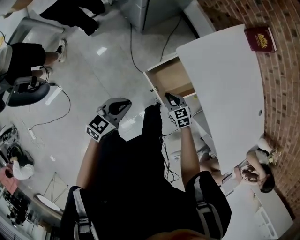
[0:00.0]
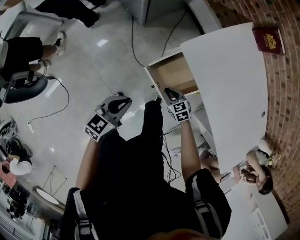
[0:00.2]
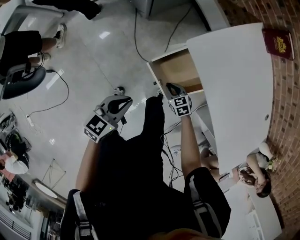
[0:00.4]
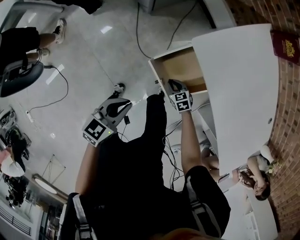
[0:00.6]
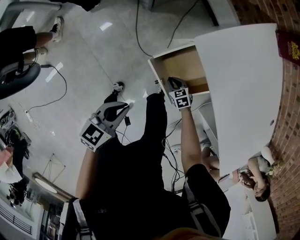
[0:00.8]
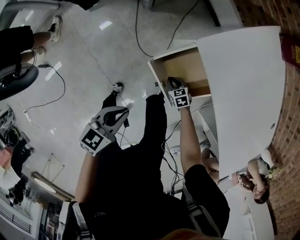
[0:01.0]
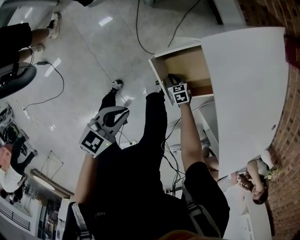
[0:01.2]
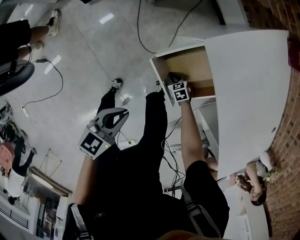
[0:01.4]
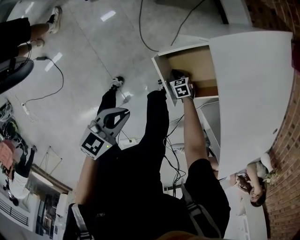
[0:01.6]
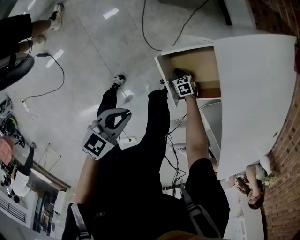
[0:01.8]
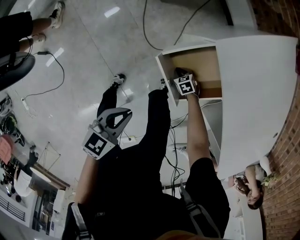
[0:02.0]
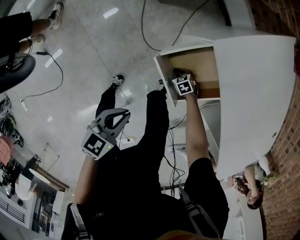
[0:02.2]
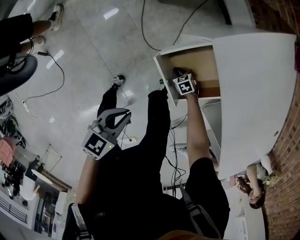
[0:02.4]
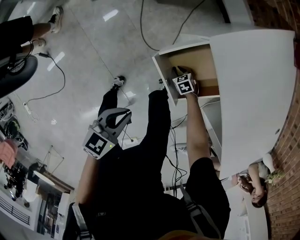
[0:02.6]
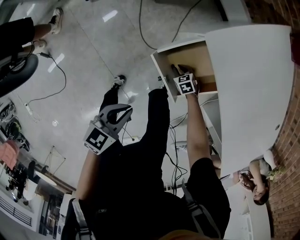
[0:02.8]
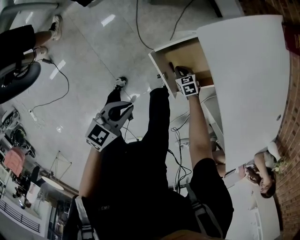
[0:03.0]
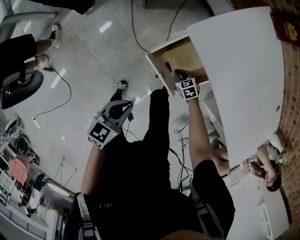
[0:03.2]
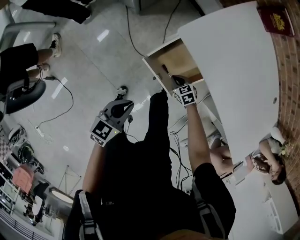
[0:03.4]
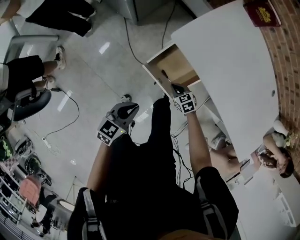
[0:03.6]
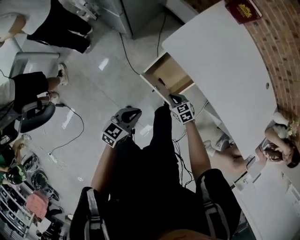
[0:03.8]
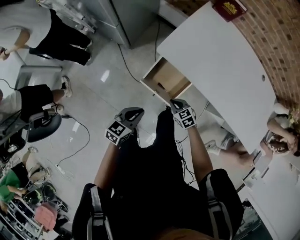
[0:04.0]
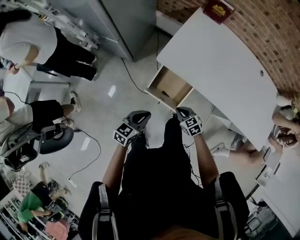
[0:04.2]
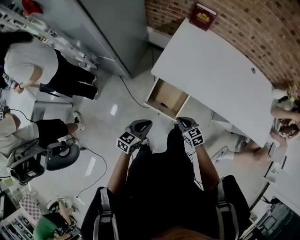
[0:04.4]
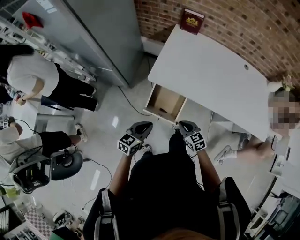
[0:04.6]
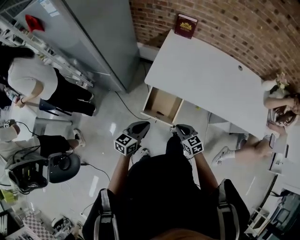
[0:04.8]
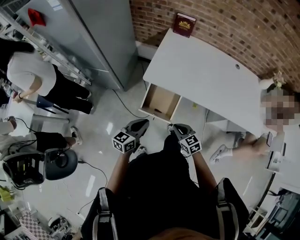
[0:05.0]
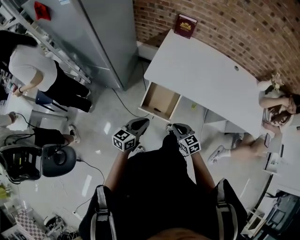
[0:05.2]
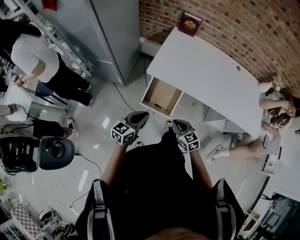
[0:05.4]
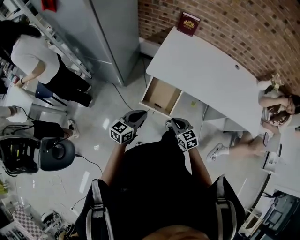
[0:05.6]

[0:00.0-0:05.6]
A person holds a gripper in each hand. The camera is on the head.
0:00.0 to 0:01.4: The right gripper moves downward, roughly 25 cm; the left gripper shifts approximately 10 cm downward.
0:01.4 to 0:02.8: The grippers stay close to where they were, moving slightly.
0:02.8 to 0:04.2: The left gripper goes roughly 10 cm upward, and changes its angle by some 20 degrees; the right gripper is displaced upward by approximately 30 cm, and changes its angle by roughly 30 degrees.
0:04.2 to 0:05.6: The left gripper goes about 10 cm upward. Meanwhile the right gripper moves upward and backward, approximately 15 cm, and swivels approximately 20 degrees.

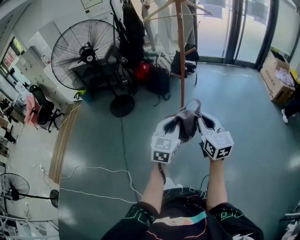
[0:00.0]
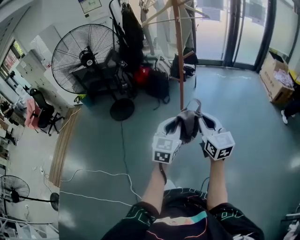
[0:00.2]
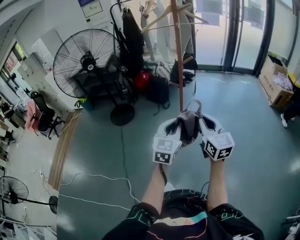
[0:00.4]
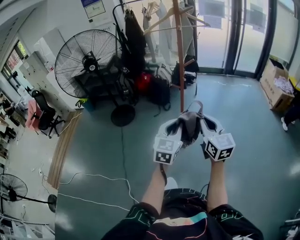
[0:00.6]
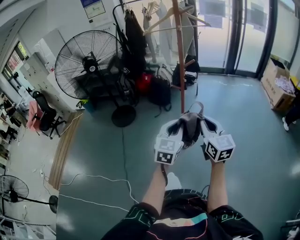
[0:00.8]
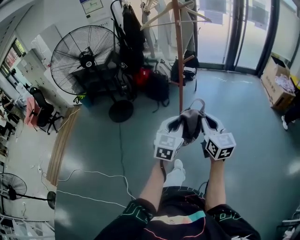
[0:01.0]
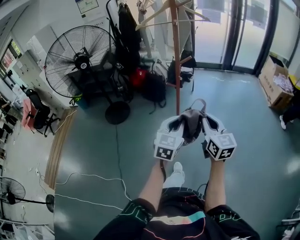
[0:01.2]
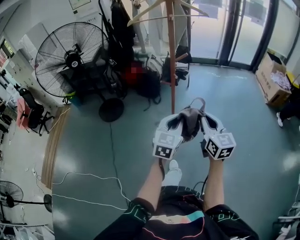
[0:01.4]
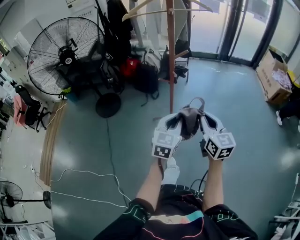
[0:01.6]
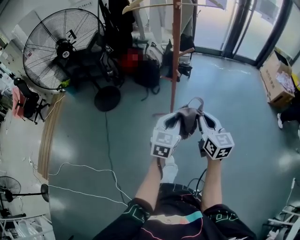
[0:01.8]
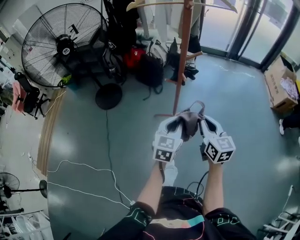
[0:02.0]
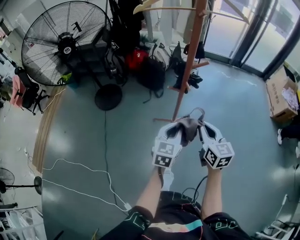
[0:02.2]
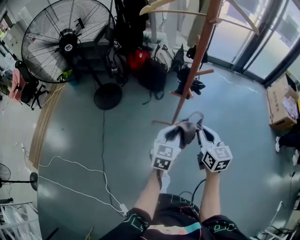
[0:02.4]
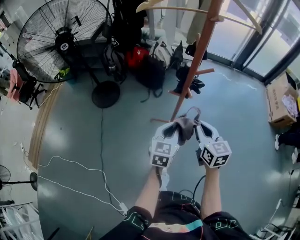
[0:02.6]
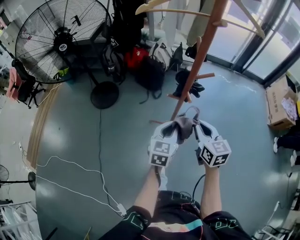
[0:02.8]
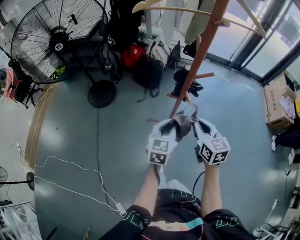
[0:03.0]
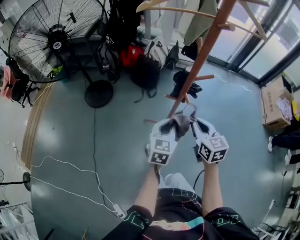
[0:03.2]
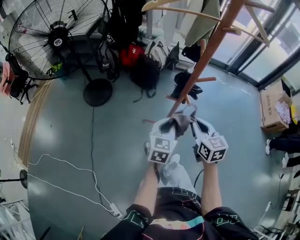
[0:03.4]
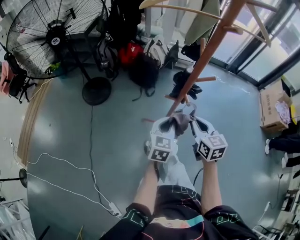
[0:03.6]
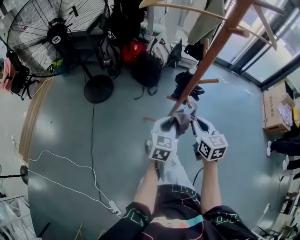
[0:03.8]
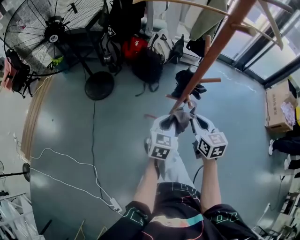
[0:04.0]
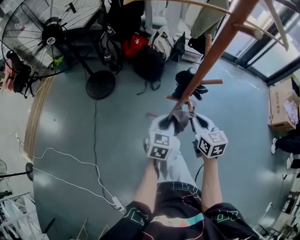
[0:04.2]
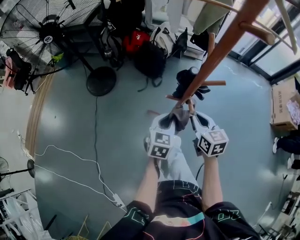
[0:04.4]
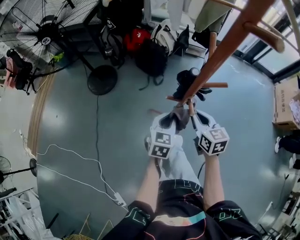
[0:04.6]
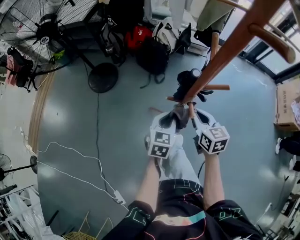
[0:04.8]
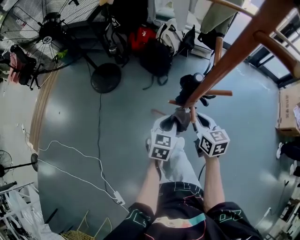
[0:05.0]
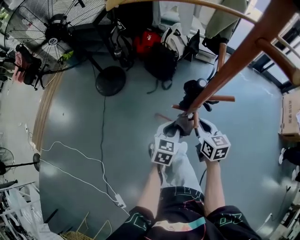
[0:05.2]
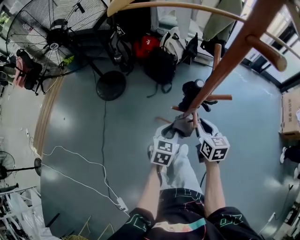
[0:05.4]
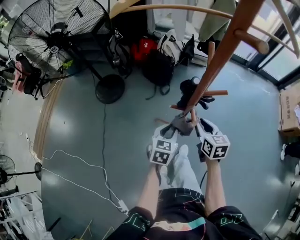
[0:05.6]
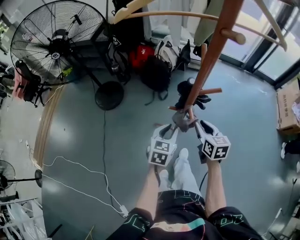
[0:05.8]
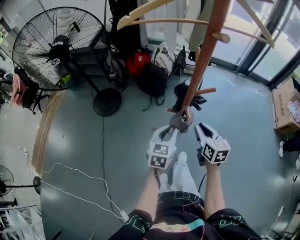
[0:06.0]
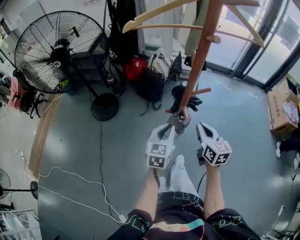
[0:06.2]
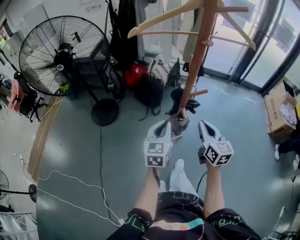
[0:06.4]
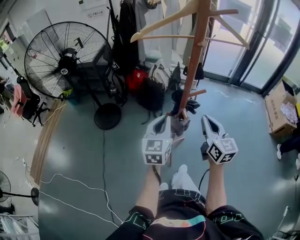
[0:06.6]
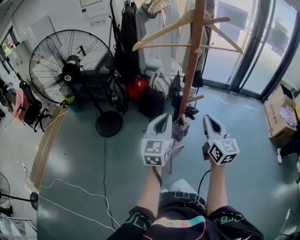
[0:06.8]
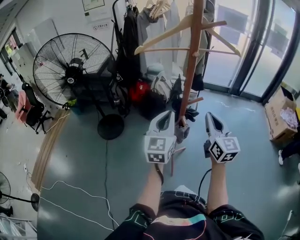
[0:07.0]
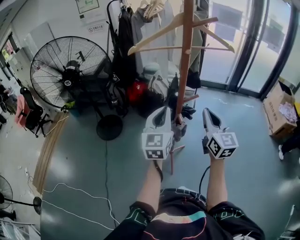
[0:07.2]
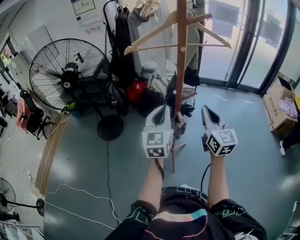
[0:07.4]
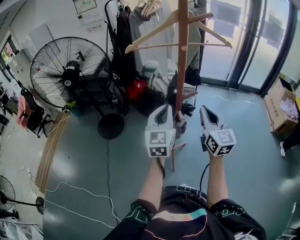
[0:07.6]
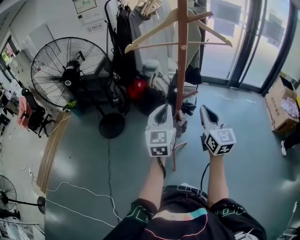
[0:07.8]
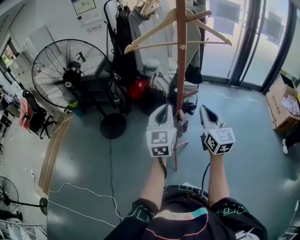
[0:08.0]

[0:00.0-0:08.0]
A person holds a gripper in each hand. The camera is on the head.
0:00.0 to 0:01.6: The grippers both shift forward and to the right by some 15 cm.
0:01.6 to 0:03.2: Both grippers move forward and downward, roughly 20 cm.
0:03.2 to 0:04.8: The grippers both shift forward and downward by approximately 10 cm.
0:04.8 to 0:06.4: The left gripper travels upward by approximately 10 cm; the right gripper heads upward and backward, covering approximately 15 cm, changes its angle by roughly 20 degrees, and opens and closes again.
0:06.4 to 0:08.0: The grippers both shift upward by about 10 cm.

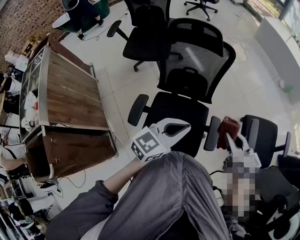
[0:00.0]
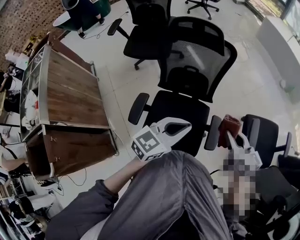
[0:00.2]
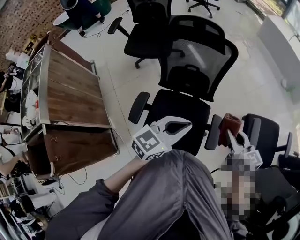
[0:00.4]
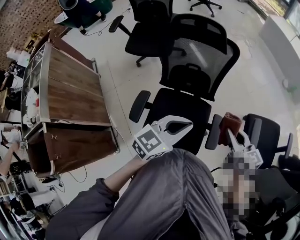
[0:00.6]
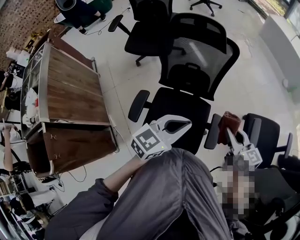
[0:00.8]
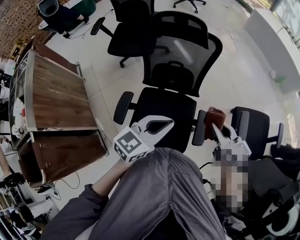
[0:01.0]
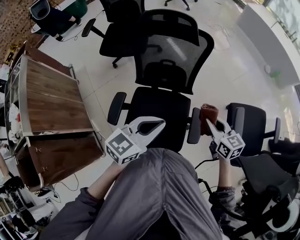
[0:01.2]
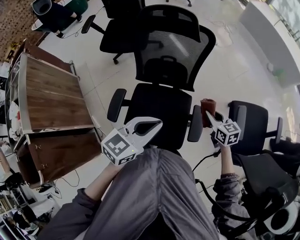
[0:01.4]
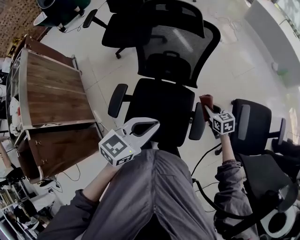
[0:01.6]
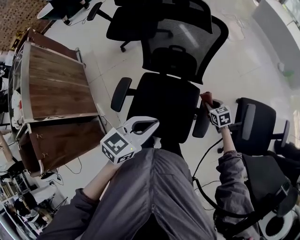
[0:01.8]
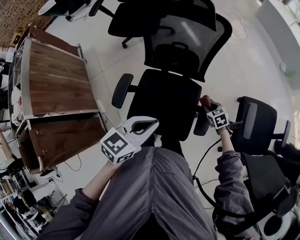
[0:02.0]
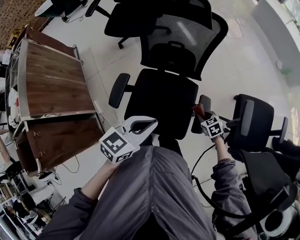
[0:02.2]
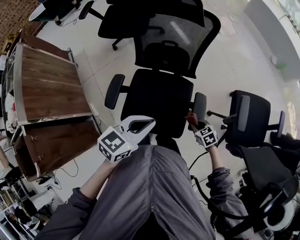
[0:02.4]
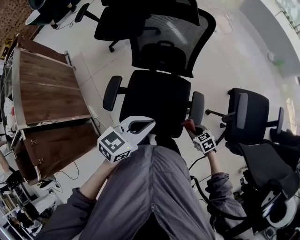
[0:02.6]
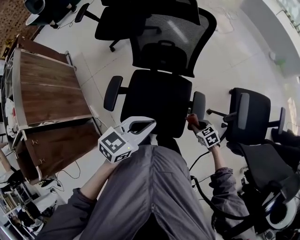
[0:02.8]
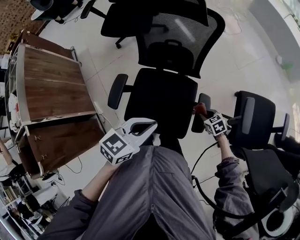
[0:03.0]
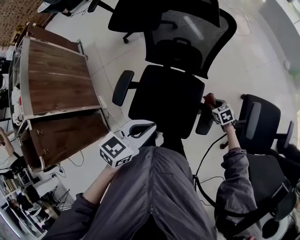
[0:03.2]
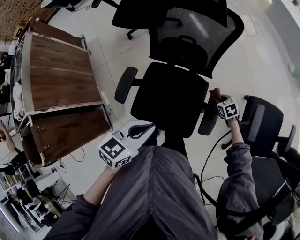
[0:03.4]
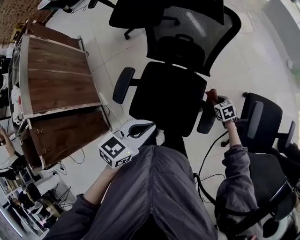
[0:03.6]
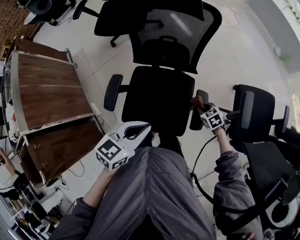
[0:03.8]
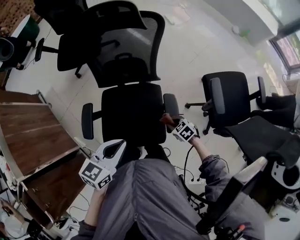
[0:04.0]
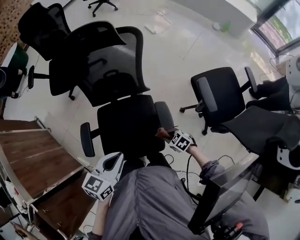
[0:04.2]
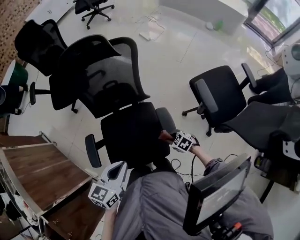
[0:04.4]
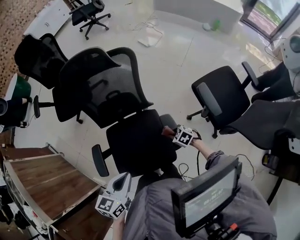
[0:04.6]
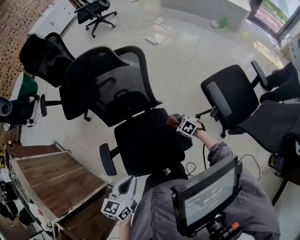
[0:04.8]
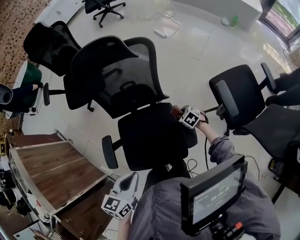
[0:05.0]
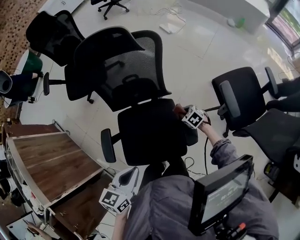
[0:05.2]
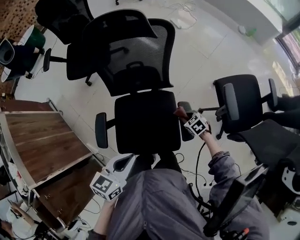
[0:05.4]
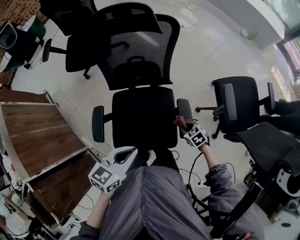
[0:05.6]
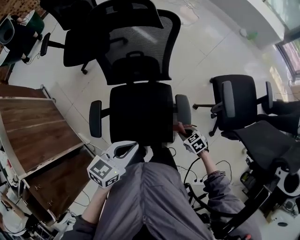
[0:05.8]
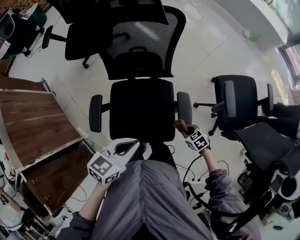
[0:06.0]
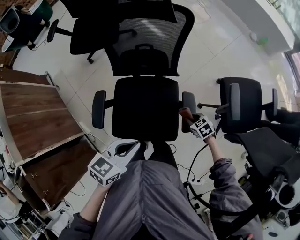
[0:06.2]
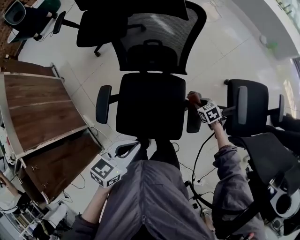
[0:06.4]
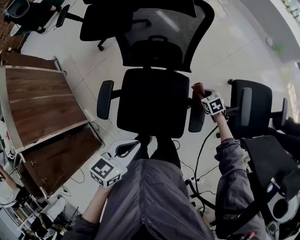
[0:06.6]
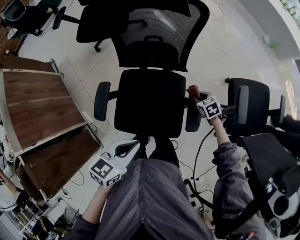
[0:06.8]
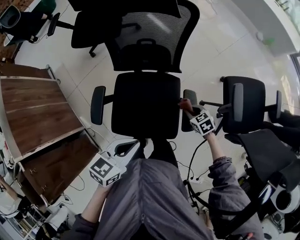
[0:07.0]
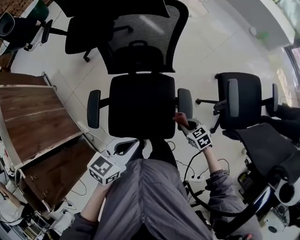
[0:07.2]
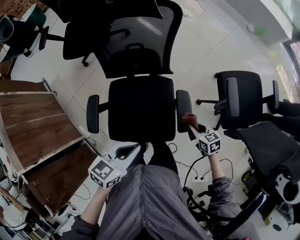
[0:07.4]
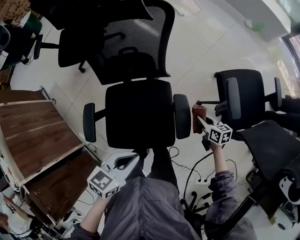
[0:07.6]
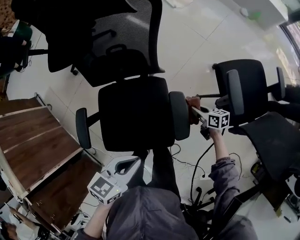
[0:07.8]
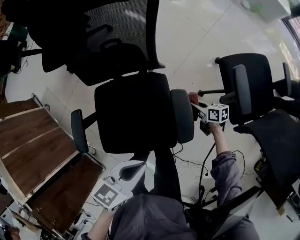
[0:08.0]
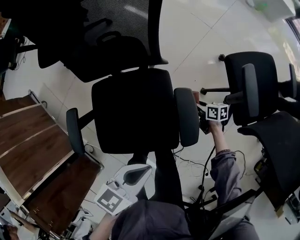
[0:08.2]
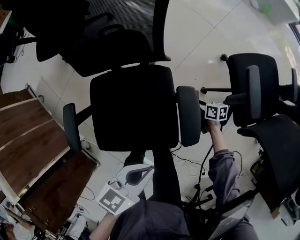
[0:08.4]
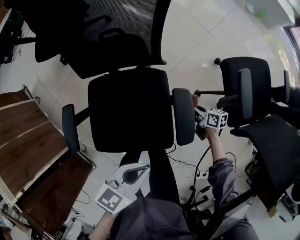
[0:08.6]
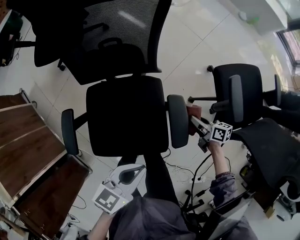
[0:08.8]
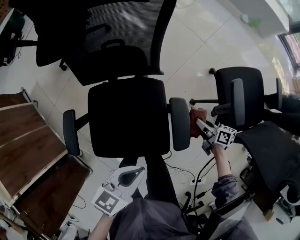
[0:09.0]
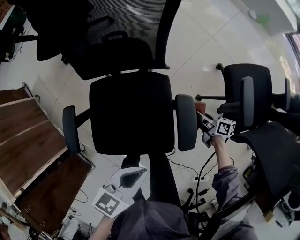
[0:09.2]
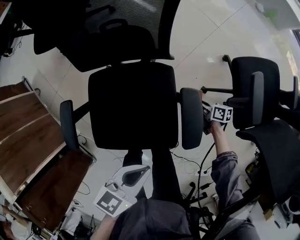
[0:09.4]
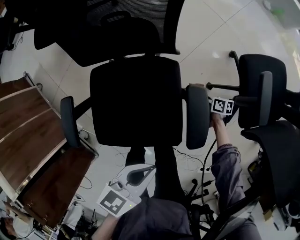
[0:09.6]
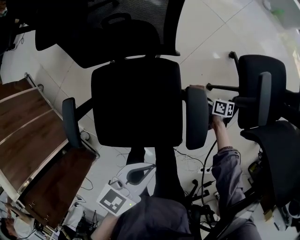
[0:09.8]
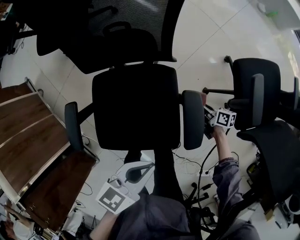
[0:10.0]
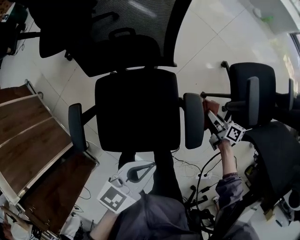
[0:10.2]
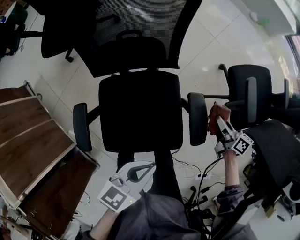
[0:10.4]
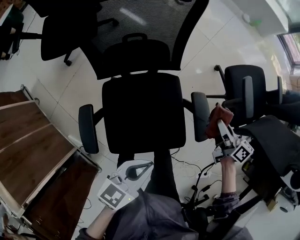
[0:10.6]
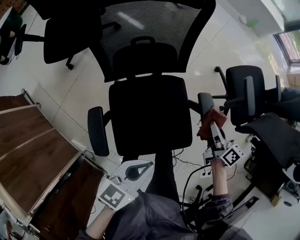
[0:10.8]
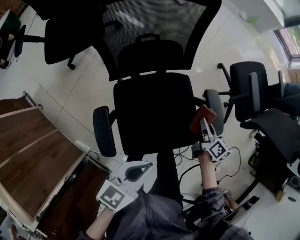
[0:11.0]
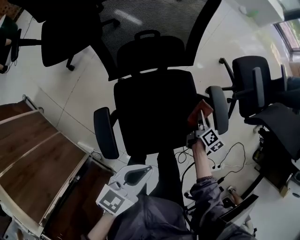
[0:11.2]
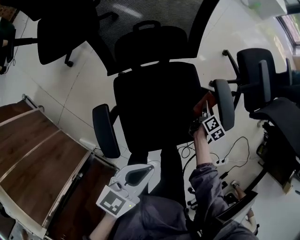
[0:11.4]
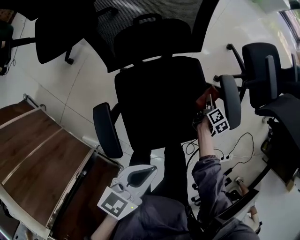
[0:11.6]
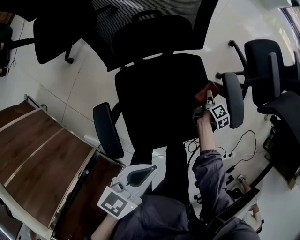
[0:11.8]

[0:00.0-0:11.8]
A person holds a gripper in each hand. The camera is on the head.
0:00.0 to 0:01.4: The right gripper travels downward and forward by some 15 cm.
0:01.4 to 0:03.0: The right gripper moves downward, about 20 cm, moves roughly 20 cm backward and comes back, and rotates approximately 30 degrees. Meanwhile the left gripper shifts some 5 cm downward.
0:03.0 to 0:04.4: The right gripper travels backward by some 10 cm.
0:04.4 to 0:06.0: The right gripper goes forward and returns, approximately 15 cm each way.
0:06.0 to 0:07.4: The right gripper moves to the right, roughly 5 cm, moves about 20 cm forward and comes back, and changes its angle by some 20 degrees.
0:07.4 to 0:08.8: The left gripper goes about 10 cm downward; the right gripper shifts approximately 15 cm downward and forward, and rotates roughly 40 degrees.
0:08.8 to 0:10.4: The right gripper goes downward and returns, roughly 20 cm each way. The left gripper shifts by some 5 cm.
0:10.4 to 0:11.8: The left gripper changes place by approximately 15 cm, while the right gripper moves downward, about 20 cm, and changes its angle by about 50 degrees.
